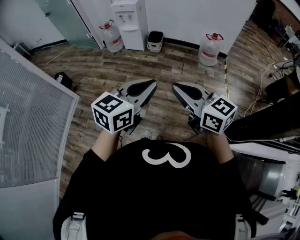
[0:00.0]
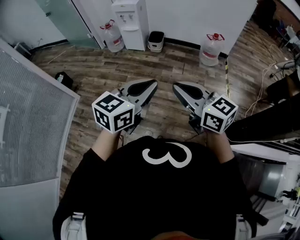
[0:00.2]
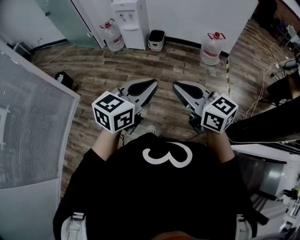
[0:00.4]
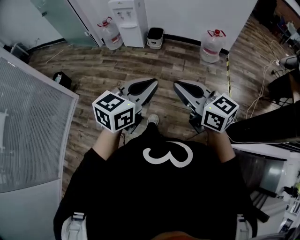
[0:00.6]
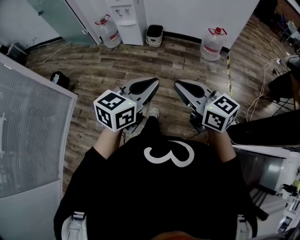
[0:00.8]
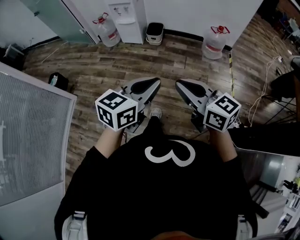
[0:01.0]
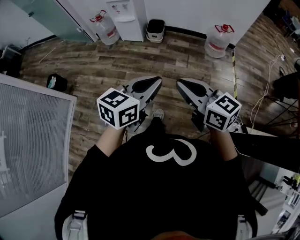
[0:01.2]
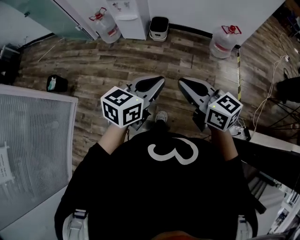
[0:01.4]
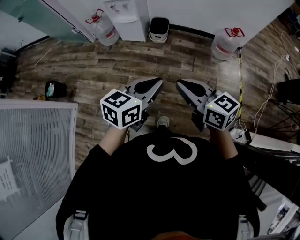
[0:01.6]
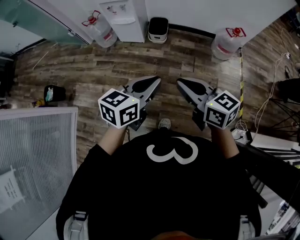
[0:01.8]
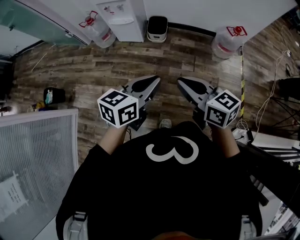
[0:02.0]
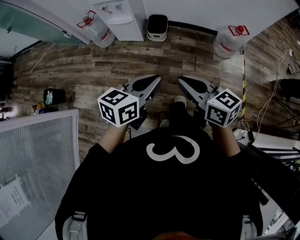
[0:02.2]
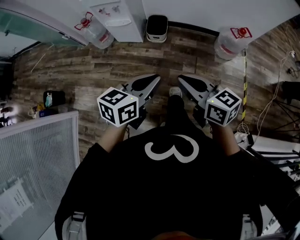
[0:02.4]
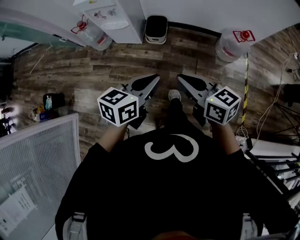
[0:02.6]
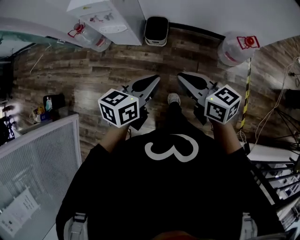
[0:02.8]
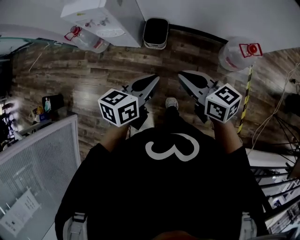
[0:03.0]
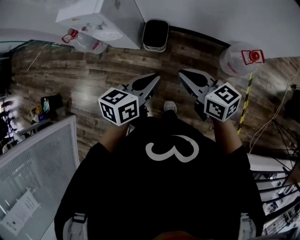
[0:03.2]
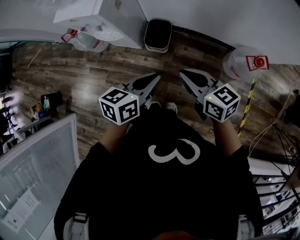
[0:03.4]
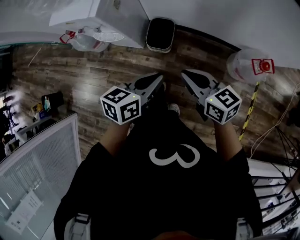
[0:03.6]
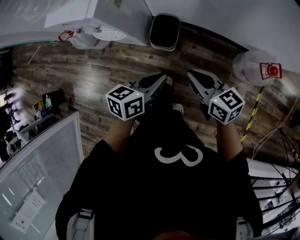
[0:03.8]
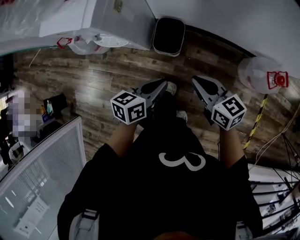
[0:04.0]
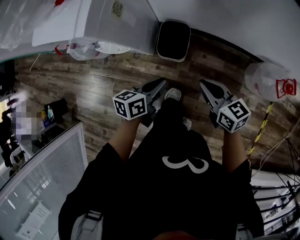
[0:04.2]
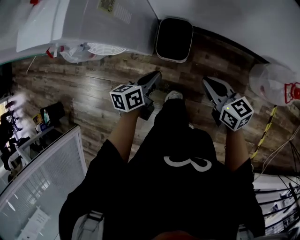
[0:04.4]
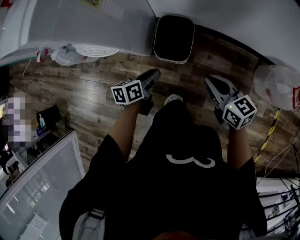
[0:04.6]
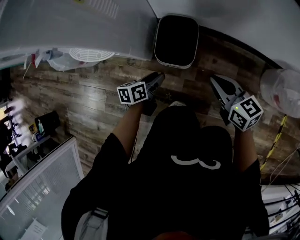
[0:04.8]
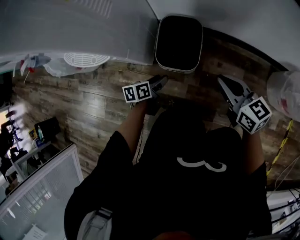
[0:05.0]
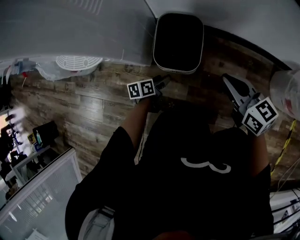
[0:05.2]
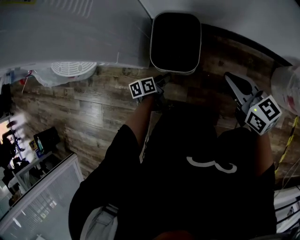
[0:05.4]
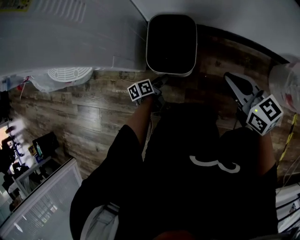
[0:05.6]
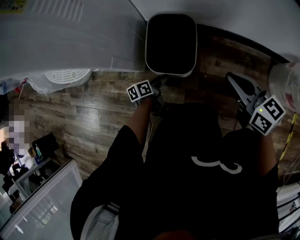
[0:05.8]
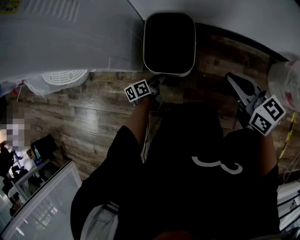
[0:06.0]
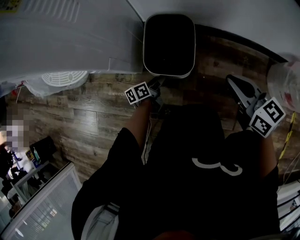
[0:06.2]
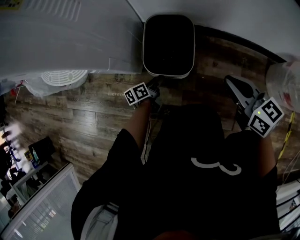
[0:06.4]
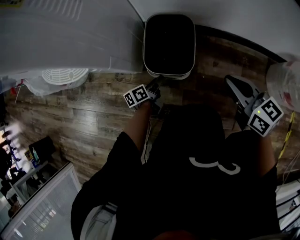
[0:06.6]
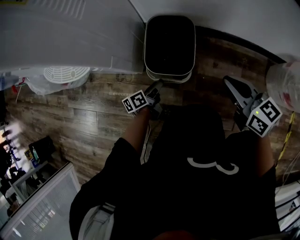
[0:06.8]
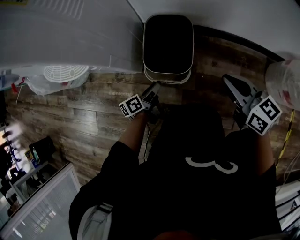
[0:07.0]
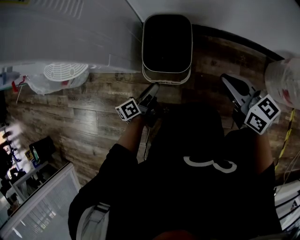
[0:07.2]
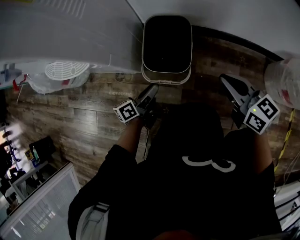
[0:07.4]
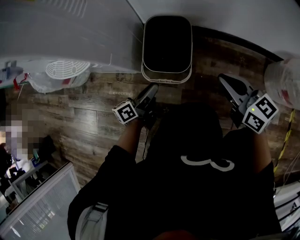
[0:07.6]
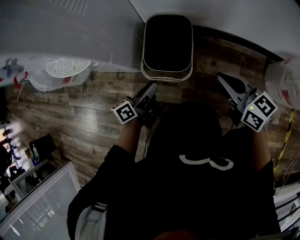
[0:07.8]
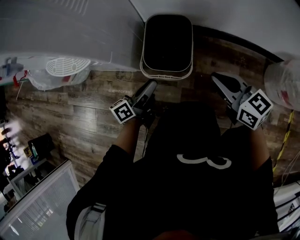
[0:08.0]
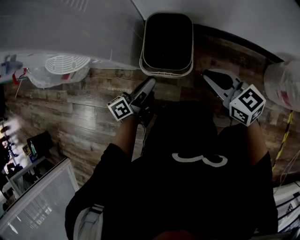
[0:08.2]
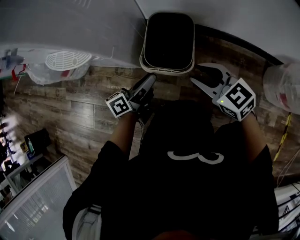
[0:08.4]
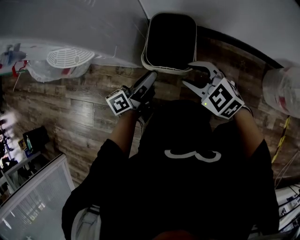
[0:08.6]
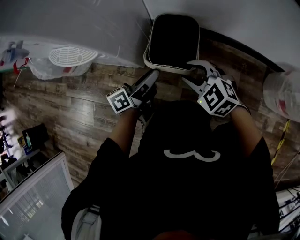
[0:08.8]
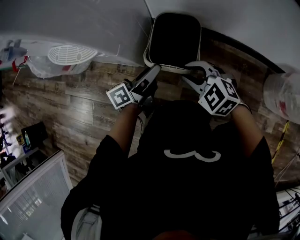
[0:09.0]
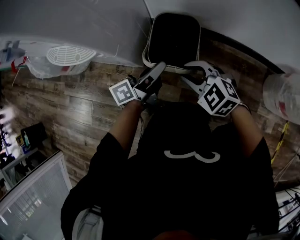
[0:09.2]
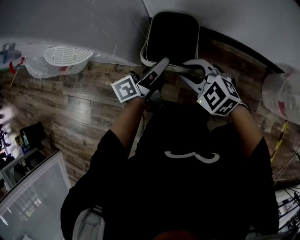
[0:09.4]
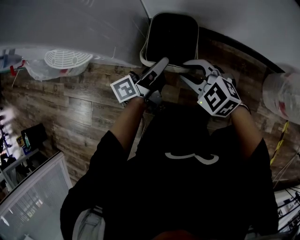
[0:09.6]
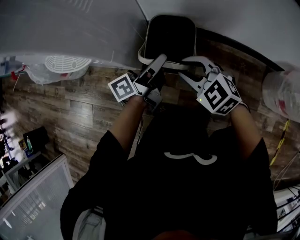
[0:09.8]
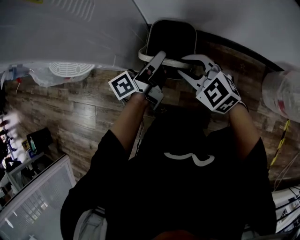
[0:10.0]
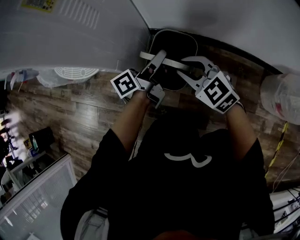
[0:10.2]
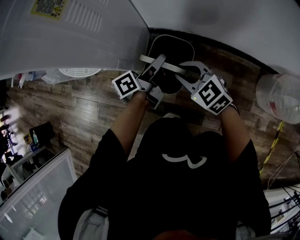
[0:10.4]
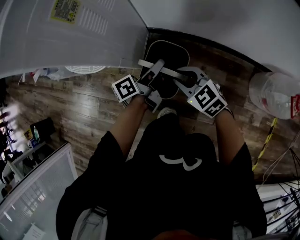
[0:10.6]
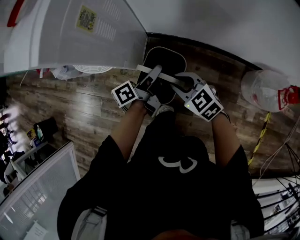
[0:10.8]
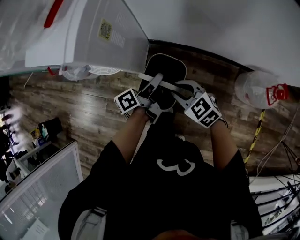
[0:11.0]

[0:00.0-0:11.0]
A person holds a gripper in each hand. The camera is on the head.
0:00.0 to 0:01.6: The grippers both shift forward by some 35 cm.
0:01.6 to 0:03.2: Both grippers are carried forward, approximately 50 cm.
0:03.2 to 0:04.8: The grippers both shift downward and forward by about 50 cm. The left gripper swivels about 20 degrees, and opens.
0:04.8 to 0:06.2: The left gripper travels downward by approximately 20 cm. Meanwhile the right gripper shifts about 5 cm downward.
0:06.2 to 0:07.8: The left gripper travels upward by roughly 15 cm, and turns by approximately 20 degrees.
0:07.8 to 0:09.4: The left gripper heads upward, forward and to the right, covering some 10 cm, while the right gripper is displaced to the left and downward by roughly 15 cm, and rolls counterclockwise, seen from behind, by roughly 50 degrees.
0:09.4 to 0:11.0: Both grippers move upward, some 25 cm. The right gripper turns by roughly 20 degrees.

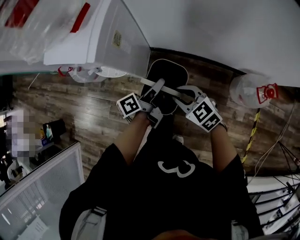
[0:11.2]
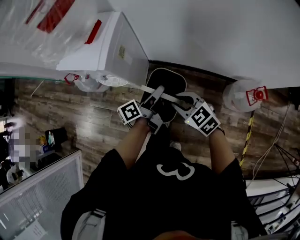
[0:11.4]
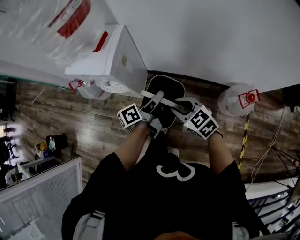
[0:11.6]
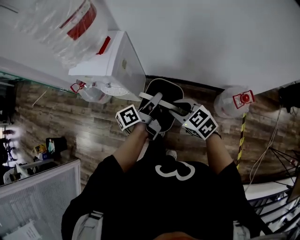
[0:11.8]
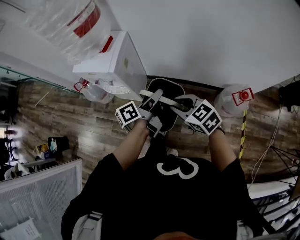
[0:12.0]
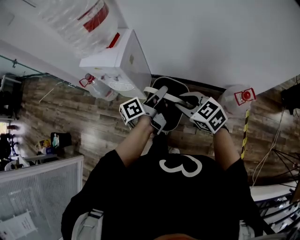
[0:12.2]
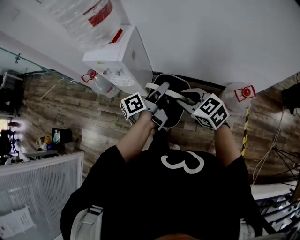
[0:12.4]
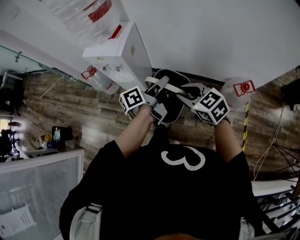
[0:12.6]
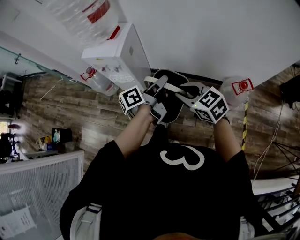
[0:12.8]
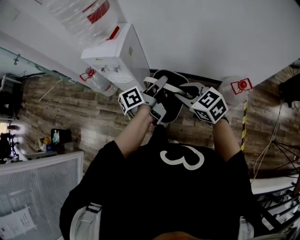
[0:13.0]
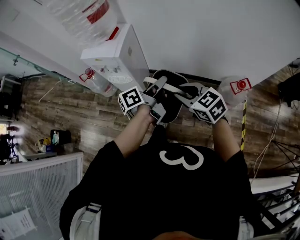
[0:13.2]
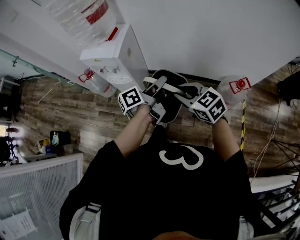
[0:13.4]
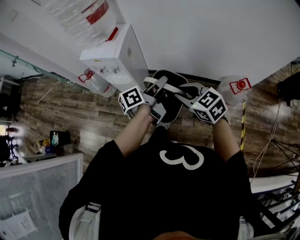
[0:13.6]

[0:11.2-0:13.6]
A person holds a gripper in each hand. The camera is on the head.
0:11.2 to 0:12.4: Both grippers travel together upward and backward, about 30 cm.
0:12.4 to 0:13.6: There are only small adjustments of the grippers.

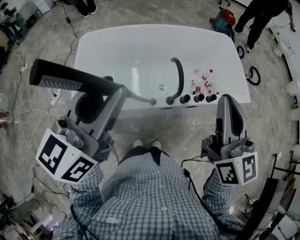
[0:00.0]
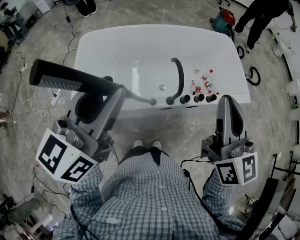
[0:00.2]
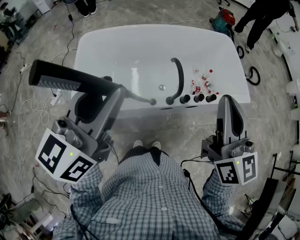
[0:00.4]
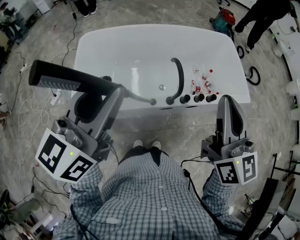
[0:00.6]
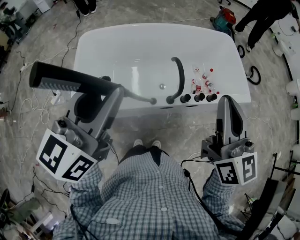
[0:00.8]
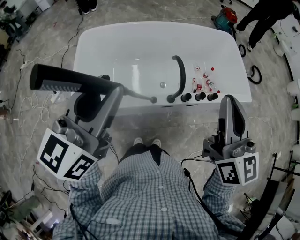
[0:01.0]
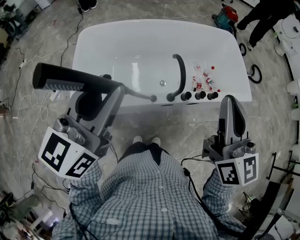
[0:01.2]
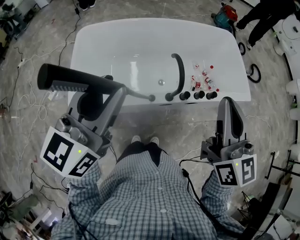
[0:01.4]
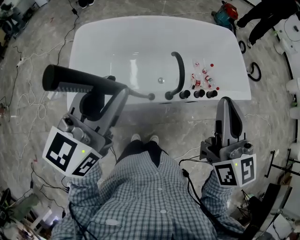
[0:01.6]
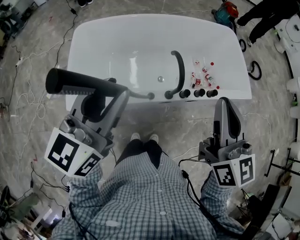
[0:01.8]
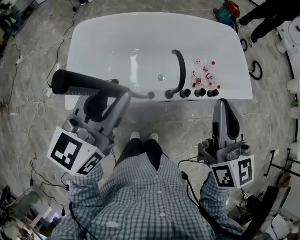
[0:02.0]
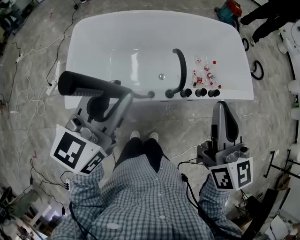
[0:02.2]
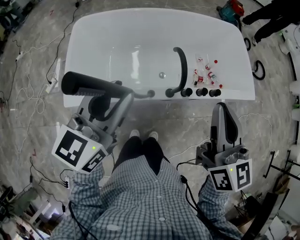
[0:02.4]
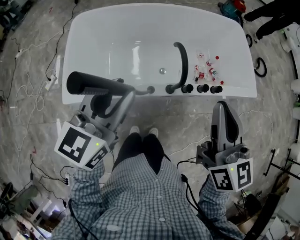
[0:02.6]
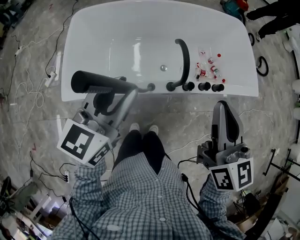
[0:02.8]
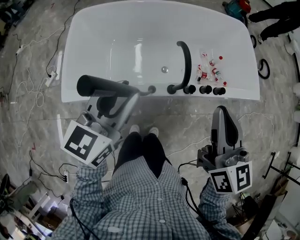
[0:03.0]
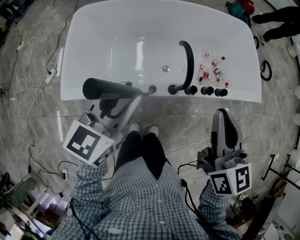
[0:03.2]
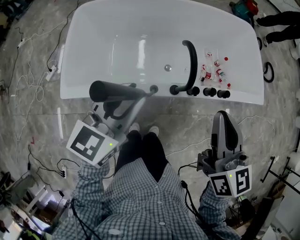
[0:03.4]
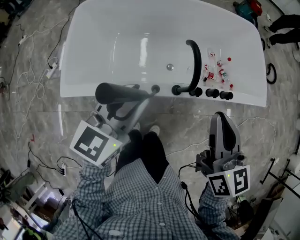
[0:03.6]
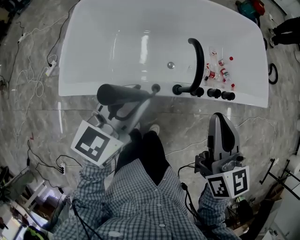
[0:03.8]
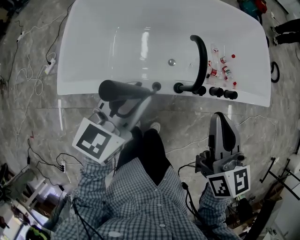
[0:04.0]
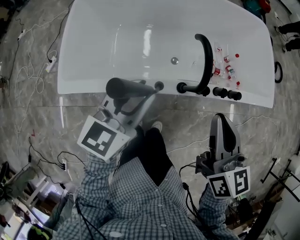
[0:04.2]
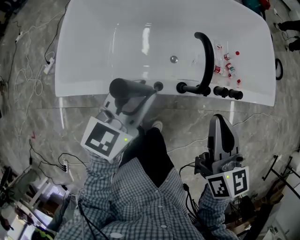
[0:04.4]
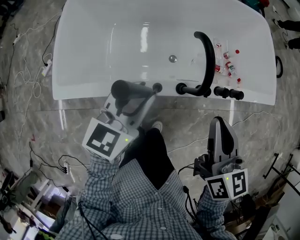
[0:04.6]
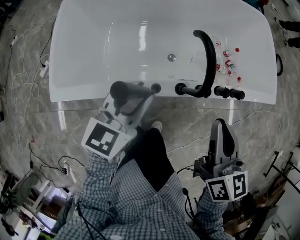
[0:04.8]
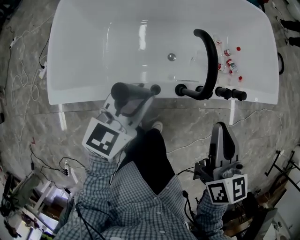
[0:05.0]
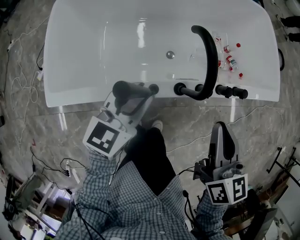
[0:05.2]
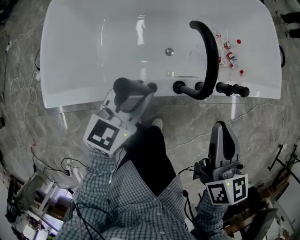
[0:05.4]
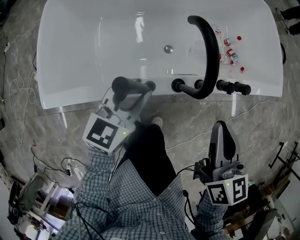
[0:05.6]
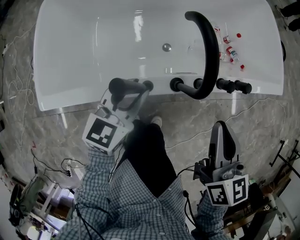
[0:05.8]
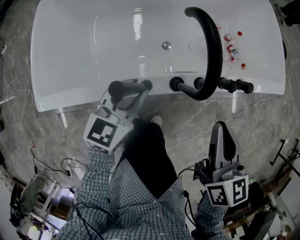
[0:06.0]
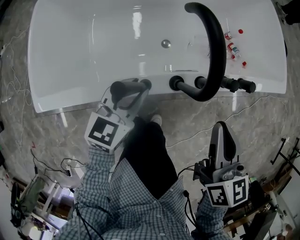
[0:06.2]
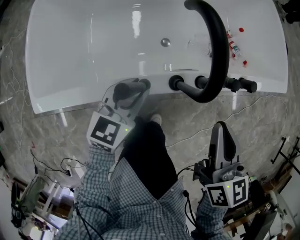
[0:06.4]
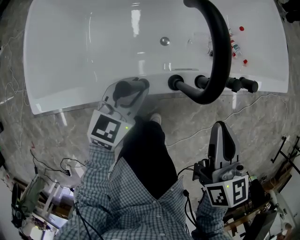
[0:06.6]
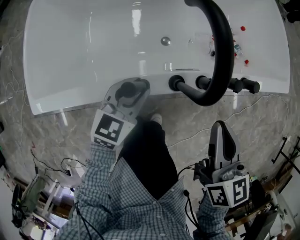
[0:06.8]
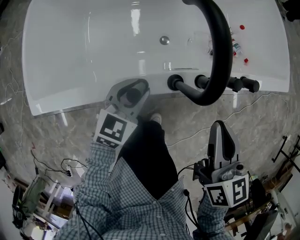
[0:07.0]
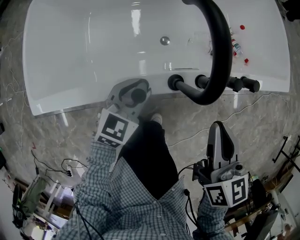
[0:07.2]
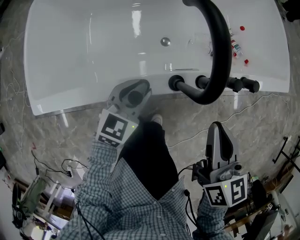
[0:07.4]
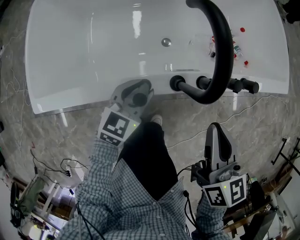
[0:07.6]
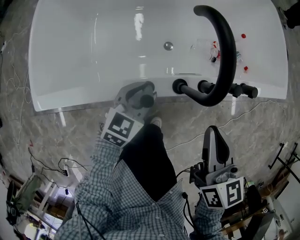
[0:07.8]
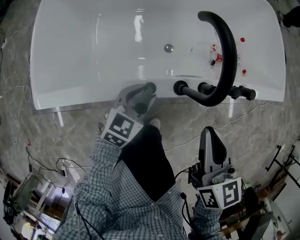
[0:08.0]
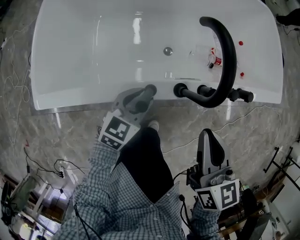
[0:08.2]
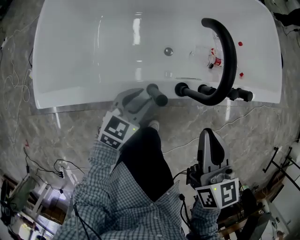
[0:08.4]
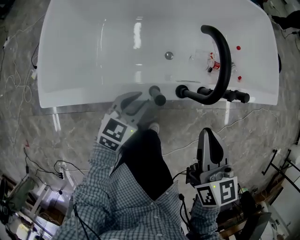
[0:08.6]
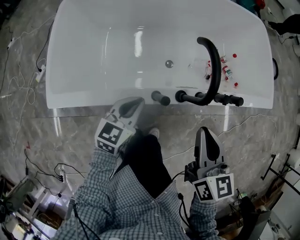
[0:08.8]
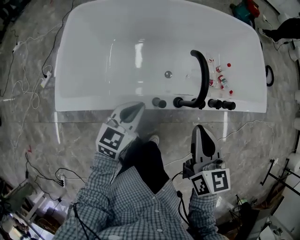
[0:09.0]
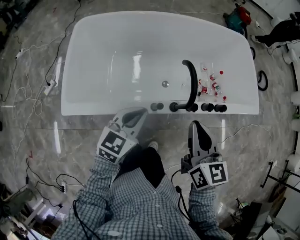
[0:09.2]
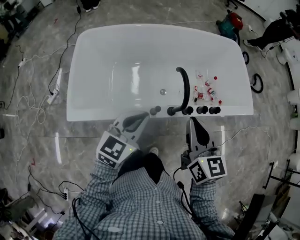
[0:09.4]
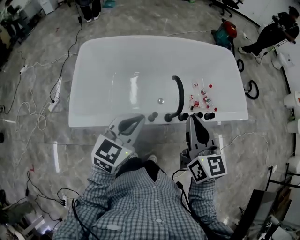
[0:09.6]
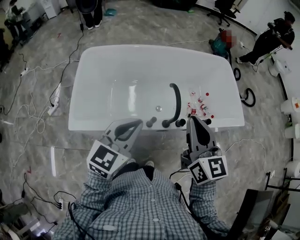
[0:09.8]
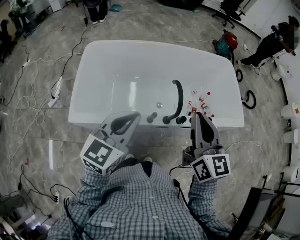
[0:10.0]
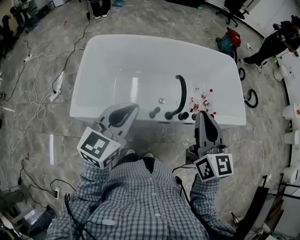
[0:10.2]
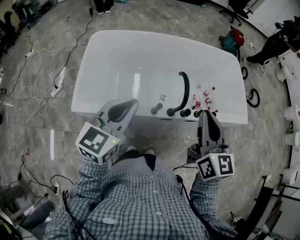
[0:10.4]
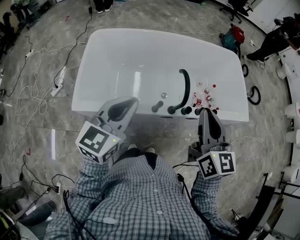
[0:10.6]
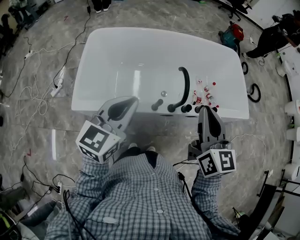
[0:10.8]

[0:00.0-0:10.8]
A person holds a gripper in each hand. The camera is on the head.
0:00.0 to 0:01.6: The left gripper ends up some 5 cm from where it was.
0:01.6 to 0:03.0: Both grippers move downward, some 10 cm.
0:03.0 to 0:04.6: The two grippers go about 15 cm downward.
0:04.6 to 0:06.2: The right gripper heads downward, covering about 10 cm; the left gripper travels downward by approximately 15 cm.
0:06.2 to 0:07.8: The left gripper is displaced downward by approximately 5 cm.
0:07.8 to 0:09.2: The right gripper goes about 20 cm upward and to the left, while the left gripper heads upward, covering about 25 cm, and closes.
0:09.2 to 0:10.8: Both grippers move upward, roughly 15 cm.
